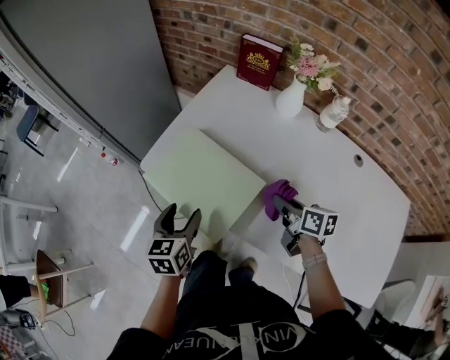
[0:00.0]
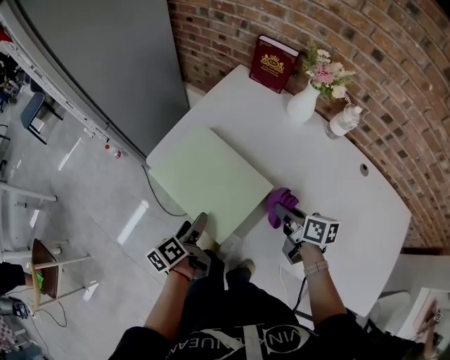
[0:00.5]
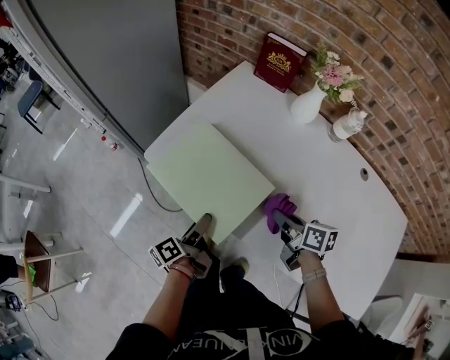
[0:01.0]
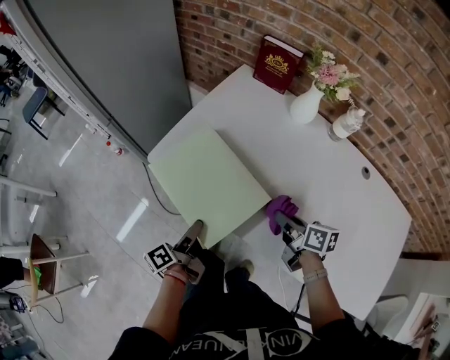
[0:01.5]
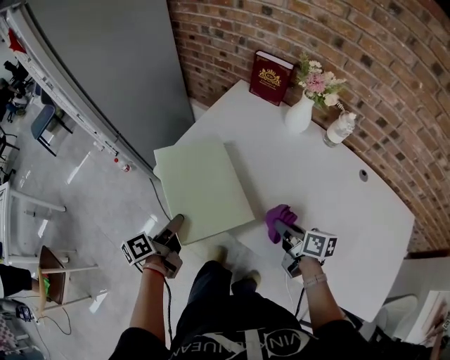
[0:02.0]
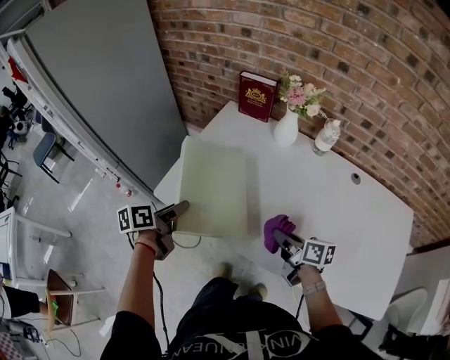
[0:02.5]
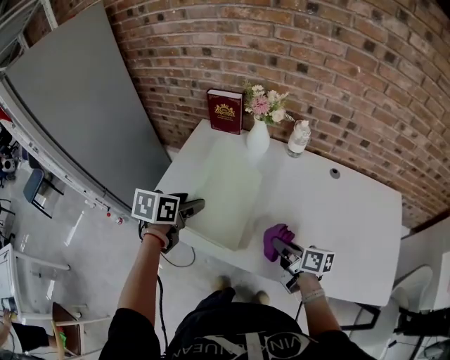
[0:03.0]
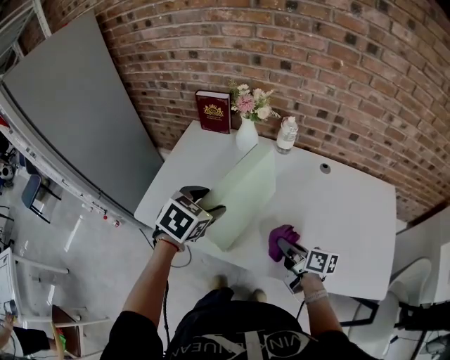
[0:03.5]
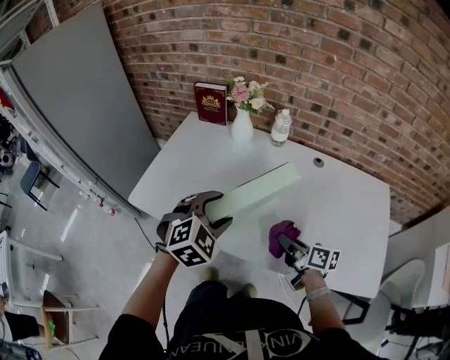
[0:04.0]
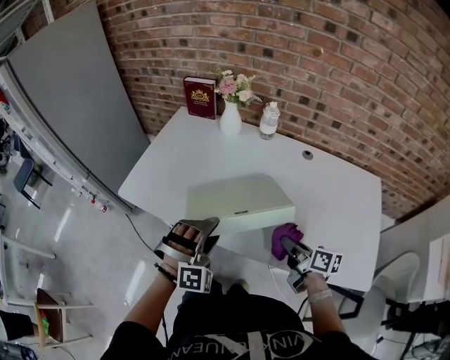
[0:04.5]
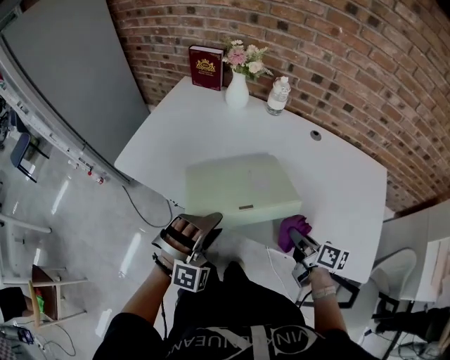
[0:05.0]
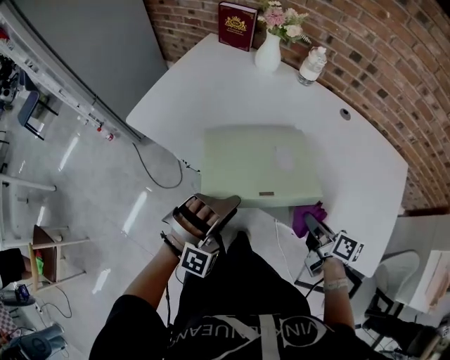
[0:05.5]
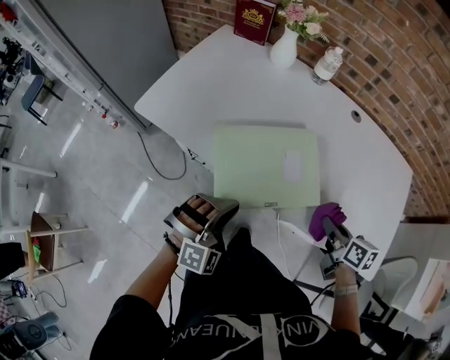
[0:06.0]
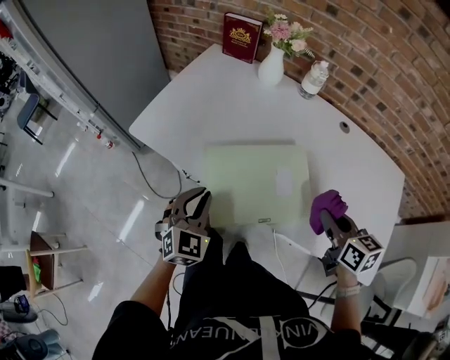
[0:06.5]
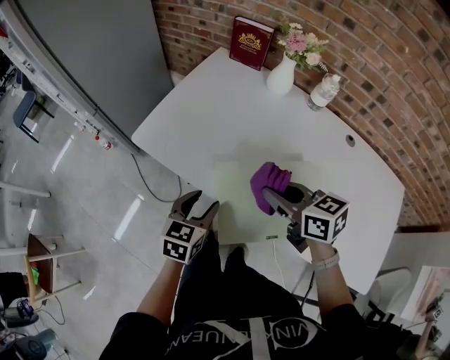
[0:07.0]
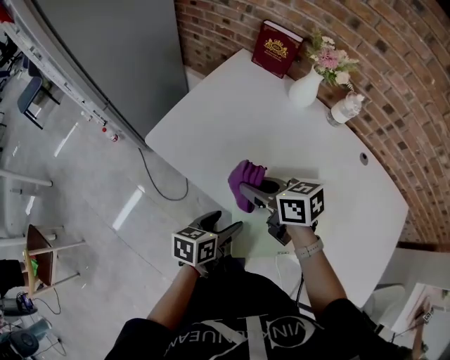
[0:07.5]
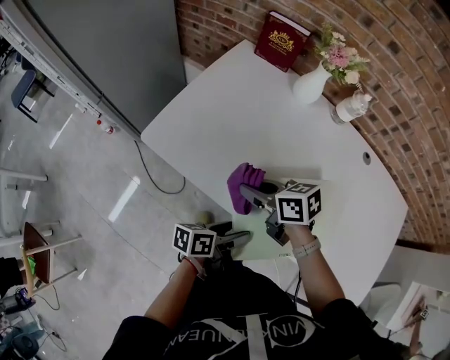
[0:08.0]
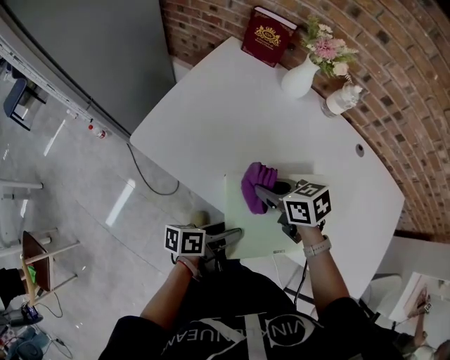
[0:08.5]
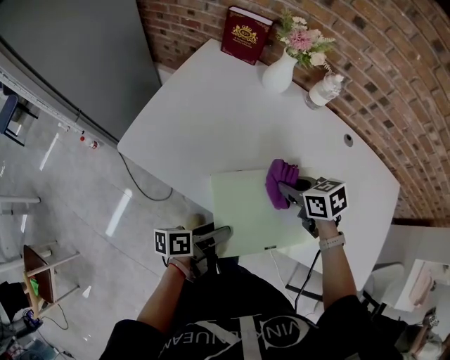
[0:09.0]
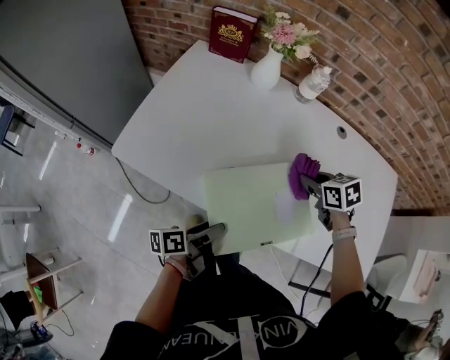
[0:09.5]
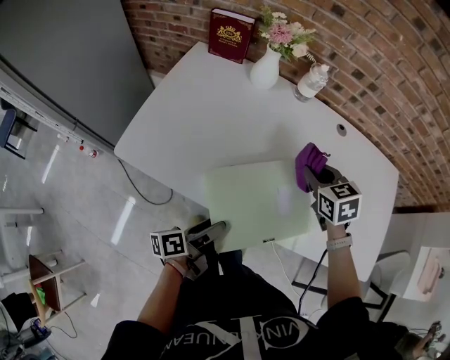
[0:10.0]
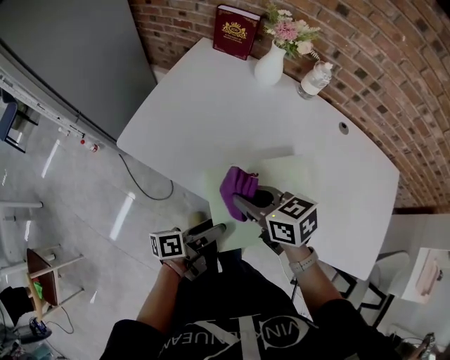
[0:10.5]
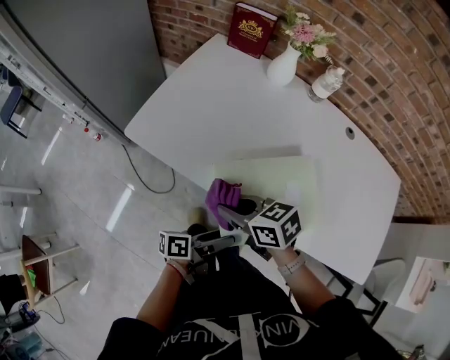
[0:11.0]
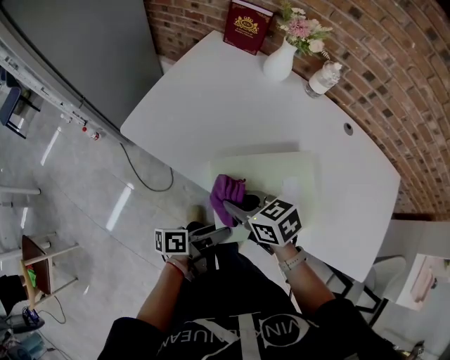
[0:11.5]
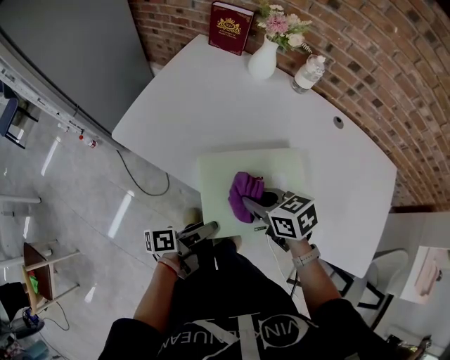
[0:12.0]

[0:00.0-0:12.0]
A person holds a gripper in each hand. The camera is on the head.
0:00.0 to 0:02.0: The left gripper goes approximately 5 cm to the left, and rotates around the line of its fingers by some 50 degrees, counterclockwise from behind.
0:02.0 to 0:04.0: The right gripper goes about 15 cm to the right and backward, while the left gripper is displaced to the right and upward by about 35 cm, and rotates around the line of its fingers by some 120 degrees, clockwise from behind.
0:04.0 to 0:06.0: The right gripper moves backward and to the right, roughly 15 cm, and rotates about 20 degrees; the left gripper goes about 20 cm backward and downward, swivels roughly 20 degrees, and closes.
0:06.0 to 0:08.0: The right gripper goes upward and returns, some 10 cm each way, and changes its angle by approximately 40 degrees. Meanwhile the left gripper moves about 10 cm, rolls counterclockwise, seen from behind, by approximately 120 degrees, and opens up.
0:08.0 to 0:10.0: The right gripper moves about 30 cm, and changes its angle by roughly 50 degrees.
0:10.0 to 0:12.0: The left gripper shifts by roughly 5 cm, while the right gripper ends up approximately 20 cm from where it was, and turns by about 30 degrees.

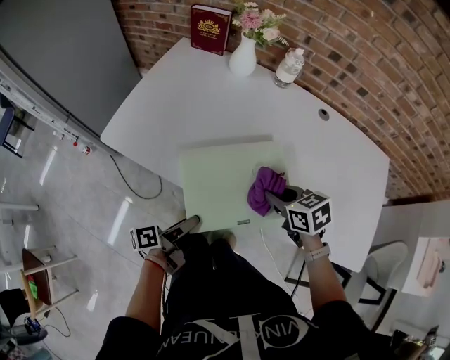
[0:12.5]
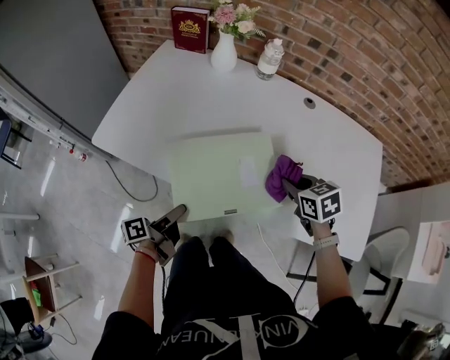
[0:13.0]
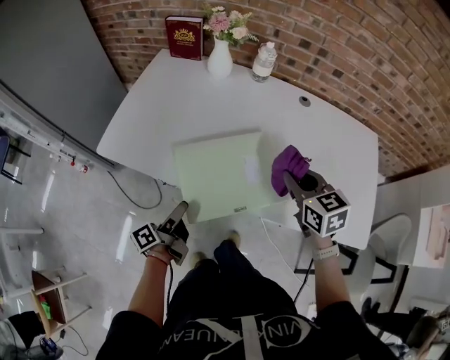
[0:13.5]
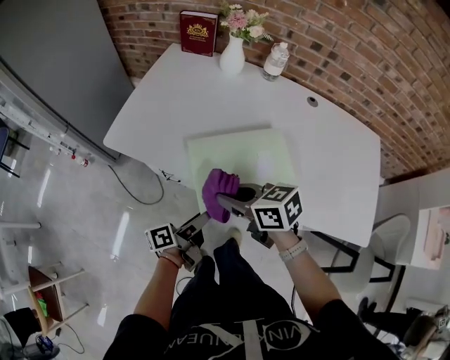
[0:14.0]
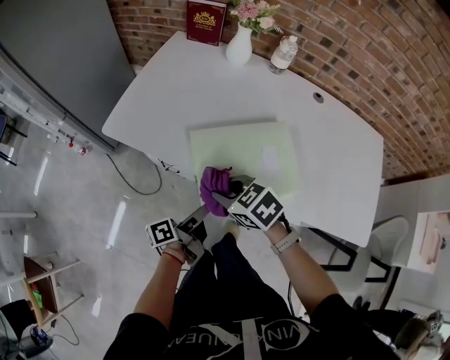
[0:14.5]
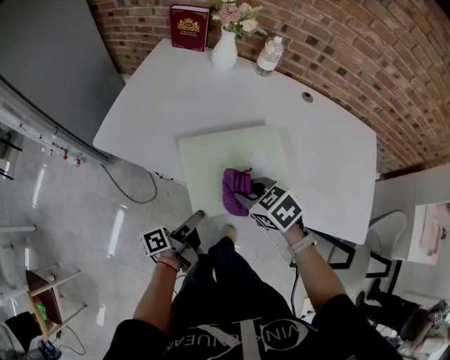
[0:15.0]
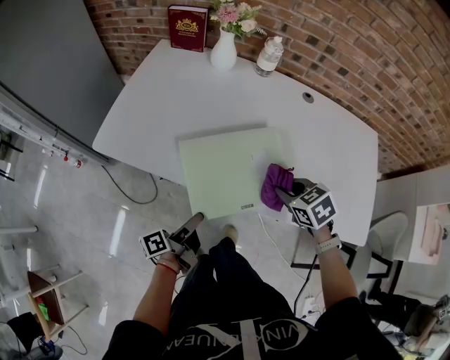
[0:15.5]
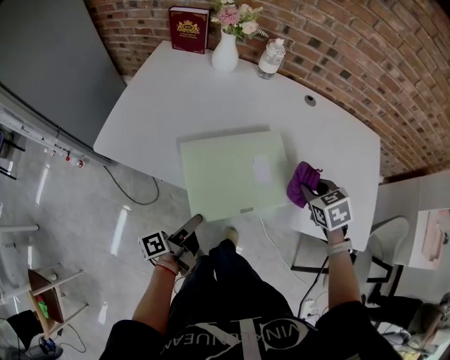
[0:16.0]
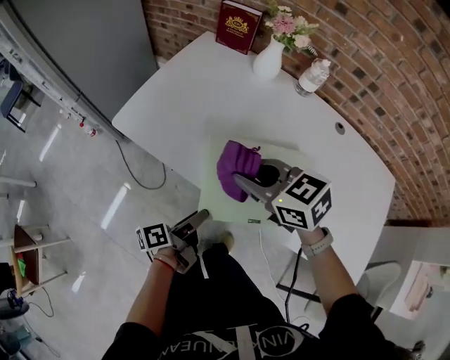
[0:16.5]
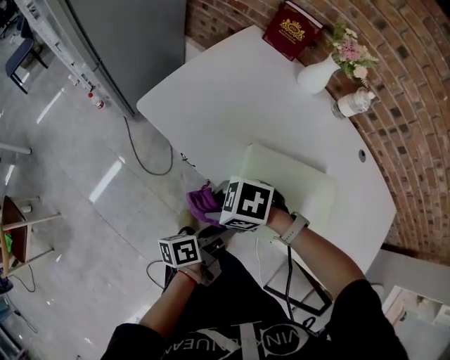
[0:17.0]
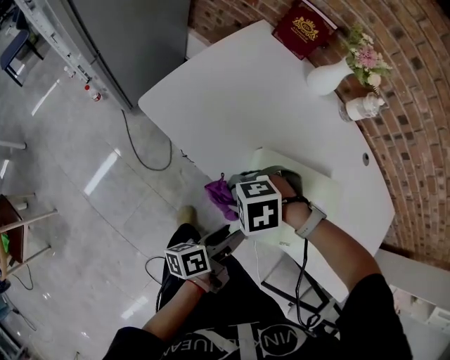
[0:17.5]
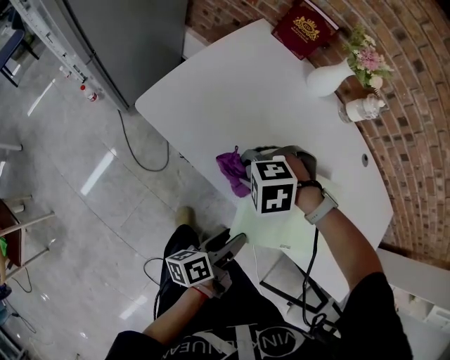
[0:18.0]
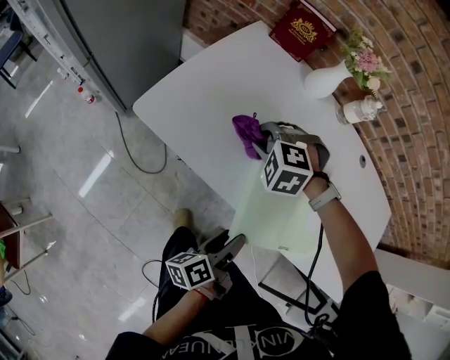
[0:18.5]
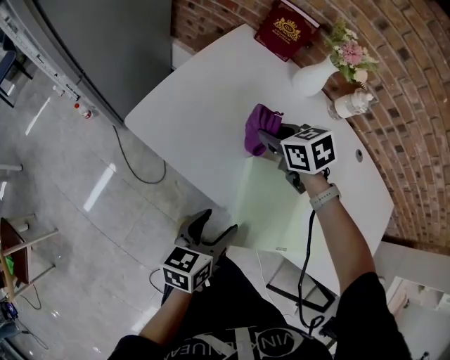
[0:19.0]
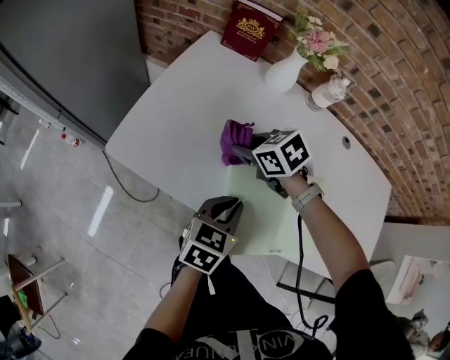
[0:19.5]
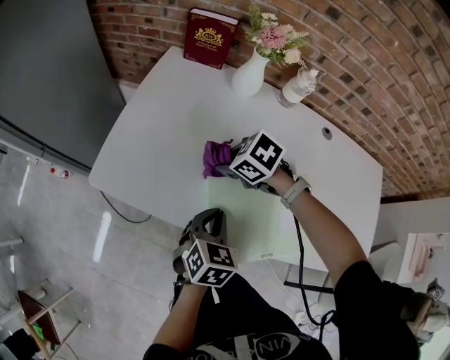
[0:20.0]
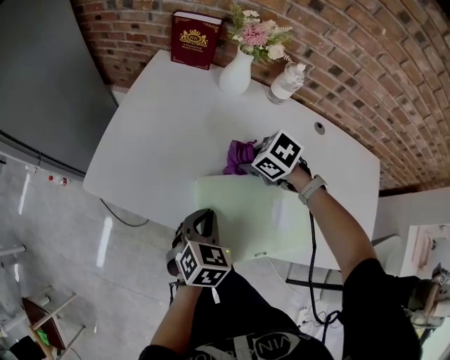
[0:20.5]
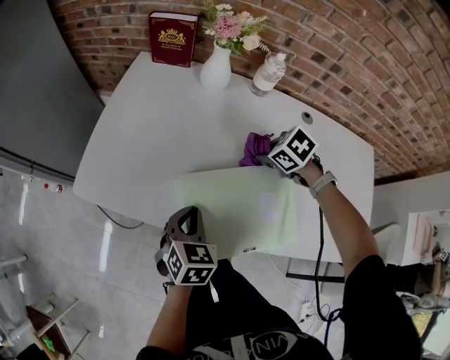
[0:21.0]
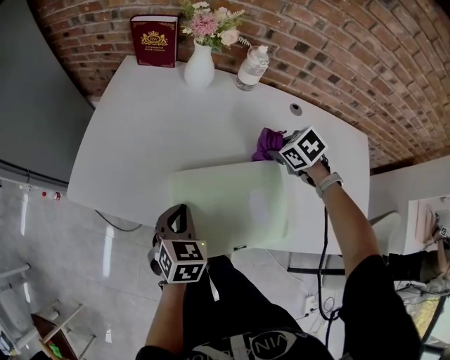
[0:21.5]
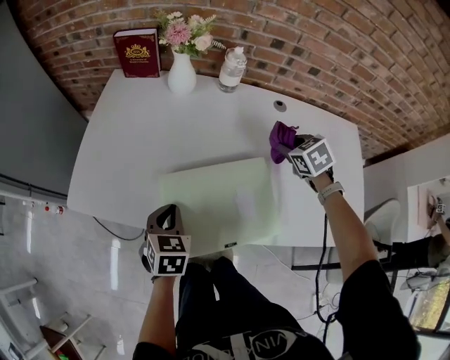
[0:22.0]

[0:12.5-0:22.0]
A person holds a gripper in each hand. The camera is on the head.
0:12.5 to 0:14.5: The right gripper shifts some 20 cm to the left, and turns by about 20 degrees.
0:14.5 to 0:16.5: The right gripper shifts some 10 cm upward.
0:16.5 to 0:18.0: The right gripper heads downward, covering roughly 15 cm, and angles its fingers downward, by roughly 50 degrees.
0:18.0 to 0:20.0: The left gripper ends up roughly 15 cm from where it was, rotates around the line of its fingers by some 80 degrees, clockwise from behind, and closes. The right gripper ends up about 15 cm from where it was, and twists approximately 60 degrees clockwise, seen from behind.
0:20.0 to 0:22.0: The right gripper ends up approximately 35 cm from where it was, and rotates some 40 degrees.

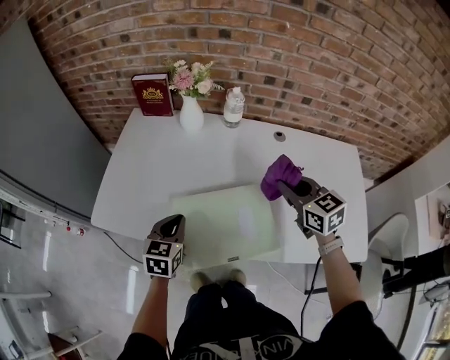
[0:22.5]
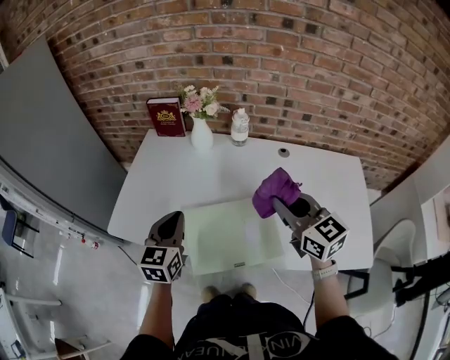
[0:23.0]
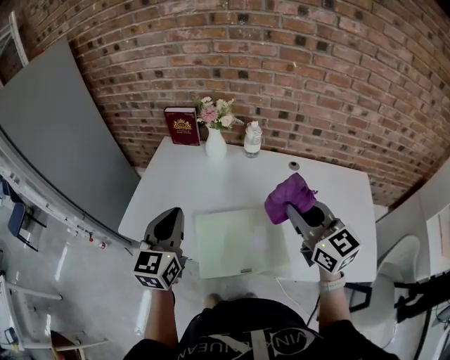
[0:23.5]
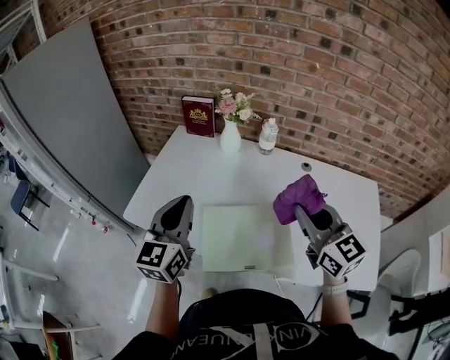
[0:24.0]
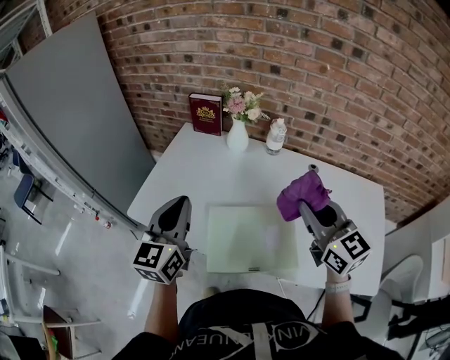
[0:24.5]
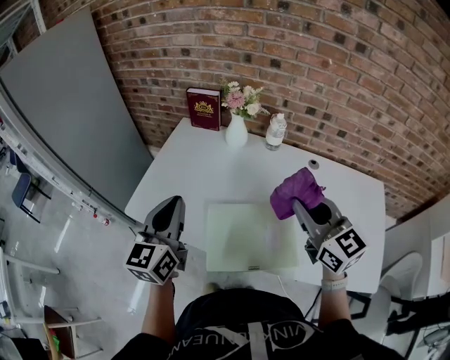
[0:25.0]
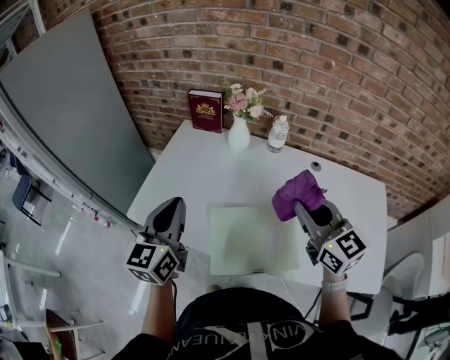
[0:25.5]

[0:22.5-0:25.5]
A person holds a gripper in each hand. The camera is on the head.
0:22.5 to 0:24.0: The left gripper is displaced upward by some 20 cm, and points its fingers approximately 30 degrees further upward, while the right gripper goes about 15 cm upward, backward and to the left, and turns by some 20 degrees.
0:24.0 to 0:25.5: The left gripper shifts by roughly 5 cm.

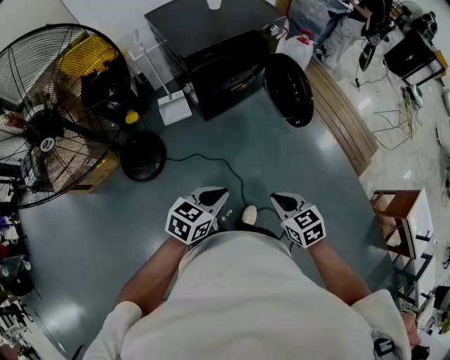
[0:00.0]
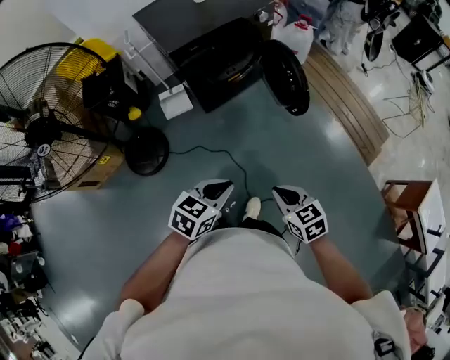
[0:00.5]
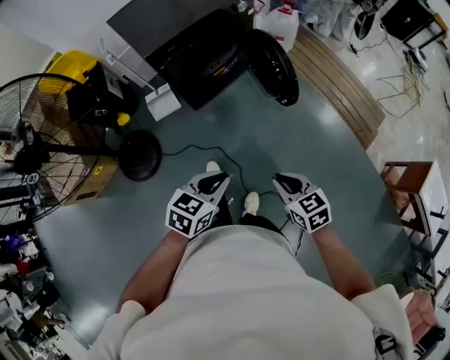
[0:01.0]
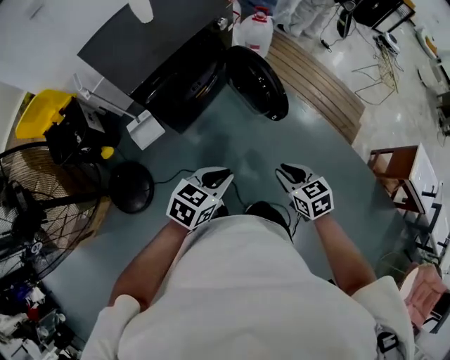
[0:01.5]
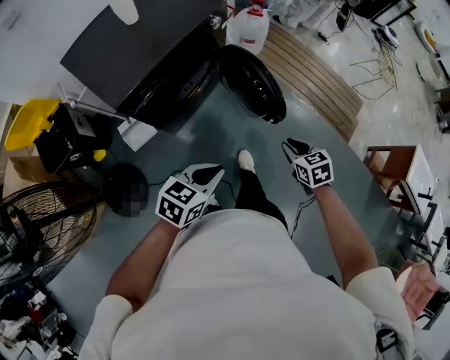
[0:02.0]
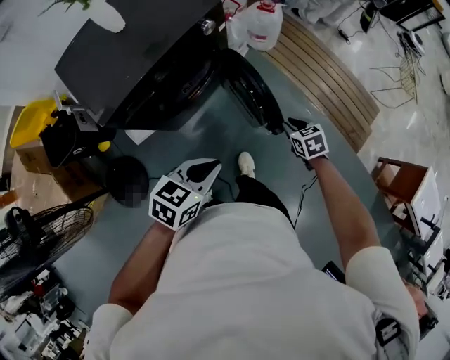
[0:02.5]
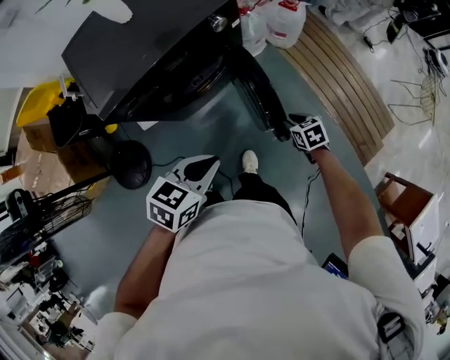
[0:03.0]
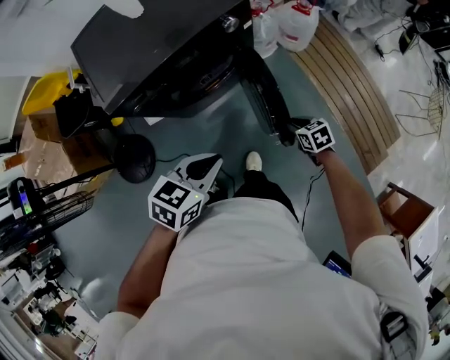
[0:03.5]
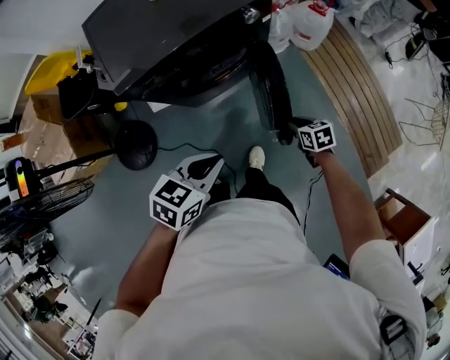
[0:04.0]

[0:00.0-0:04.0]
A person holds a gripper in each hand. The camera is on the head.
0:00.0 to 0:02.0: Both grippers travel together forward, about 30 cm. The right gripper turns by about 20 degrees.
0:02.0 to 0:04.0: The left gripper shifts by about 15 cm, and turns by some 20 degrees. The right gripper ends up about 25 cm from where it was, and turns by some 30 degrees.
